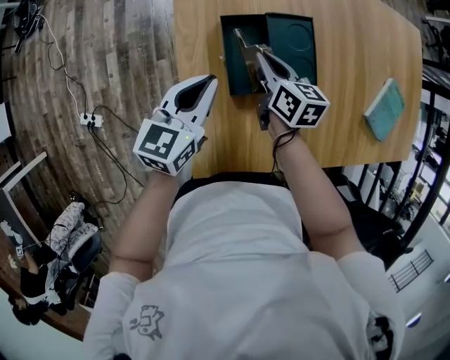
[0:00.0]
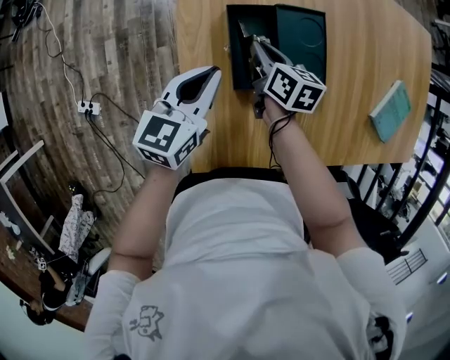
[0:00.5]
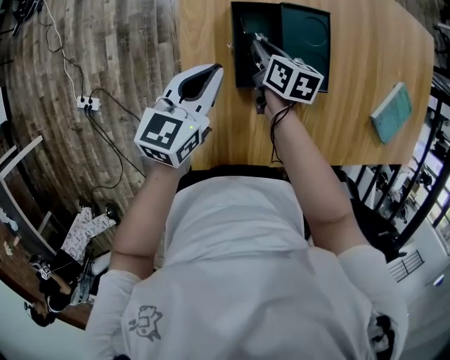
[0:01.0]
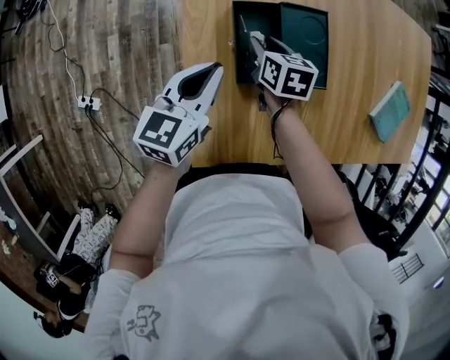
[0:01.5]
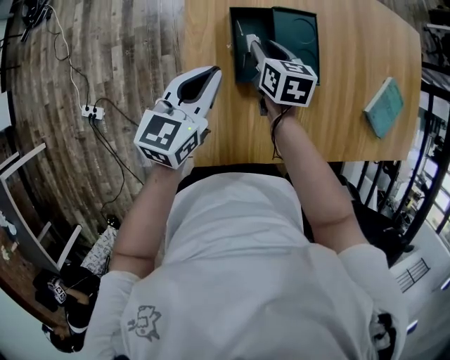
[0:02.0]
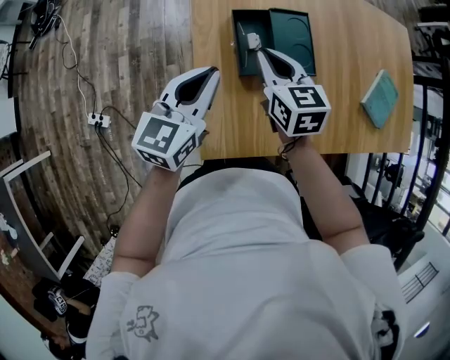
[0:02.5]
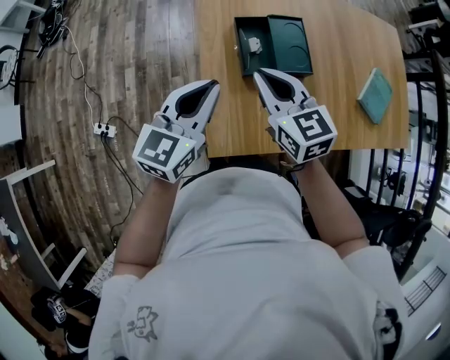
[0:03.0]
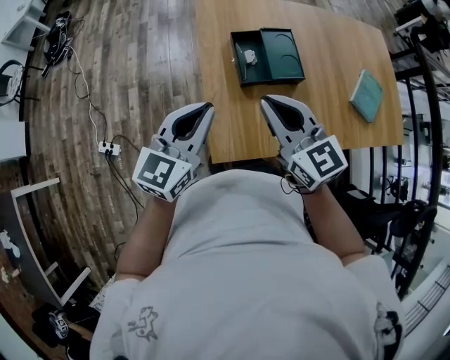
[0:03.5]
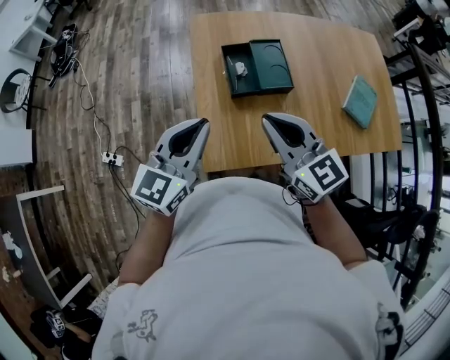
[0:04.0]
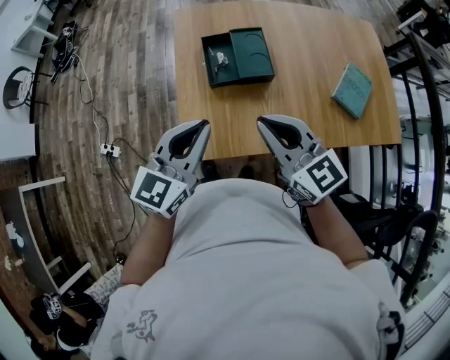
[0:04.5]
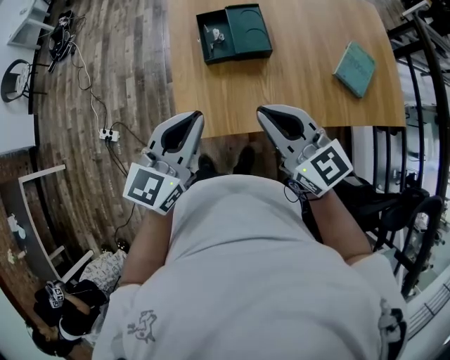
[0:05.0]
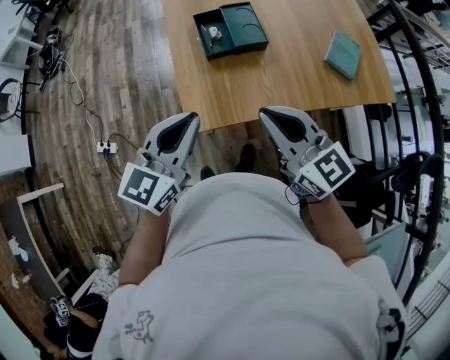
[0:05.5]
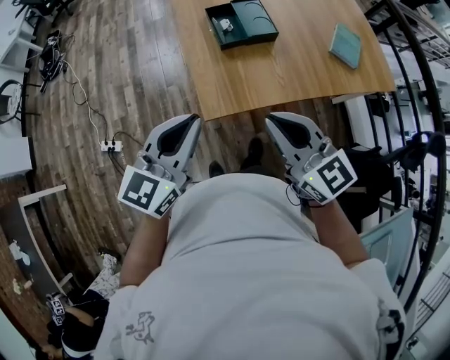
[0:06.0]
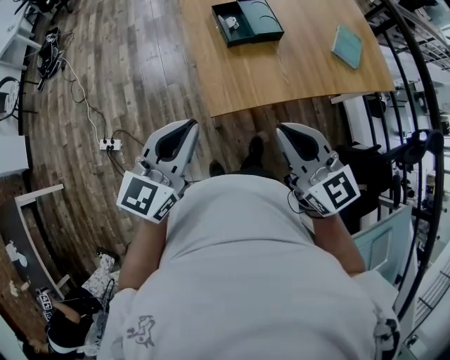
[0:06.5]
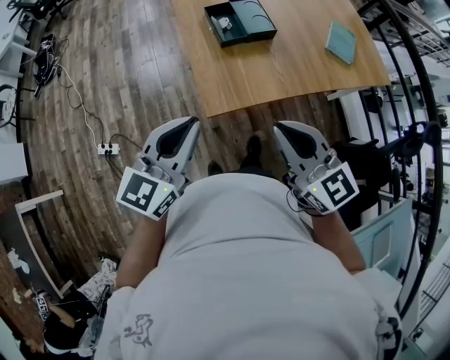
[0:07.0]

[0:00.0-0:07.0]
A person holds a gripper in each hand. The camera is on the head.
0:00.0 to 0:02.0: The right gripper goes downward and returns, approximately 10 cm each way, and opens its fingers.
0:02.0 to 0:03.5: The left gripper goes roughly 20 cm backward and upward. The right gripper heads upward and backward, covering some 35 cm, points its fingers some 30 degrees further upward, and closes up.
0:03.5 to 0:05.0: Both grippers move to the right and backward, some 15 cm.
0:05.0 to 0:07.0: The right gripper heads backward and to the left, covering approximately 20 cm, while the left gripper moves to the left and backward, some 20 cm.

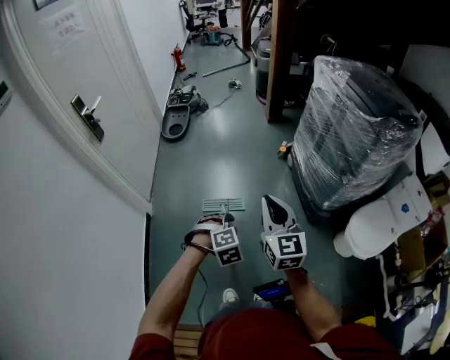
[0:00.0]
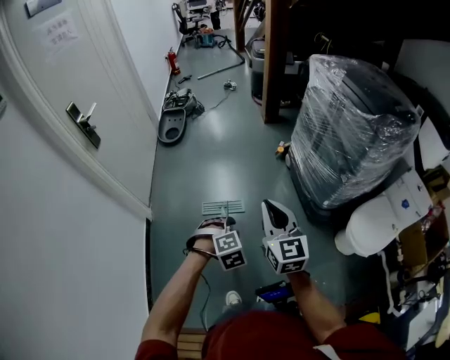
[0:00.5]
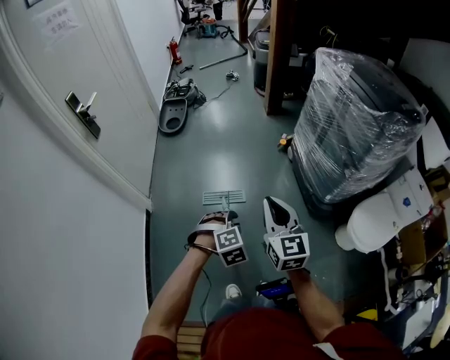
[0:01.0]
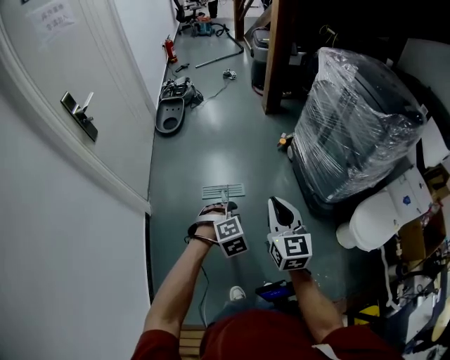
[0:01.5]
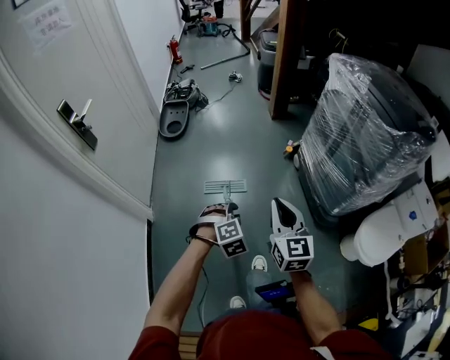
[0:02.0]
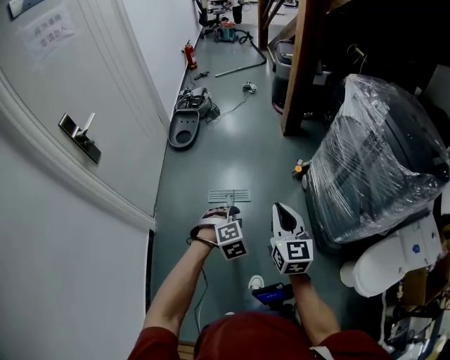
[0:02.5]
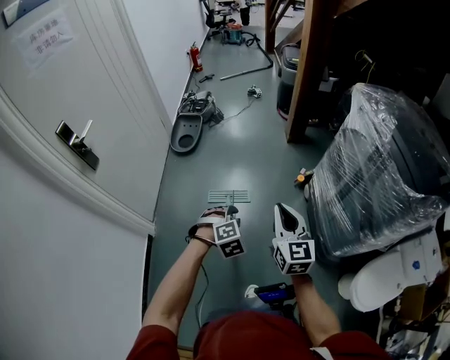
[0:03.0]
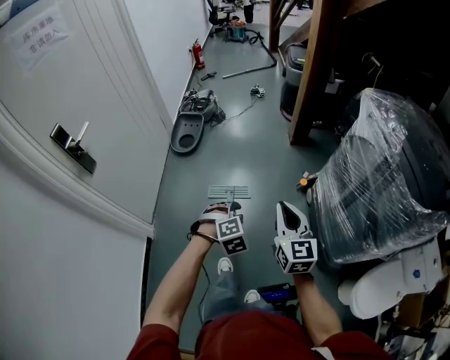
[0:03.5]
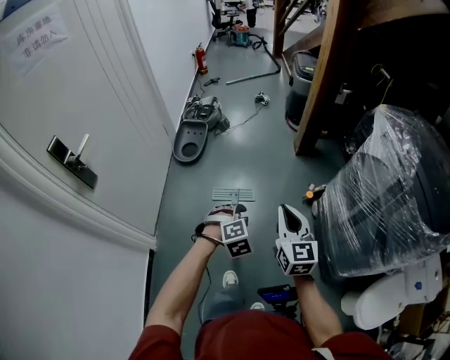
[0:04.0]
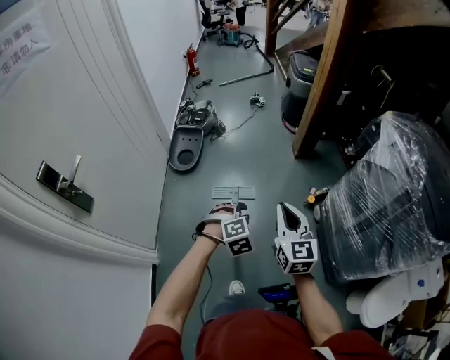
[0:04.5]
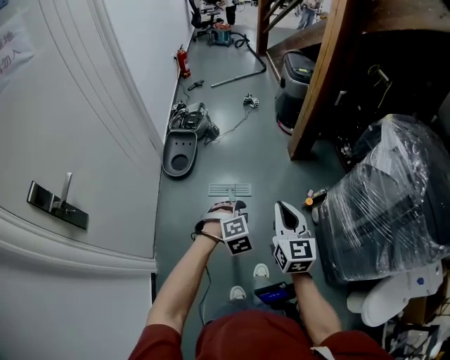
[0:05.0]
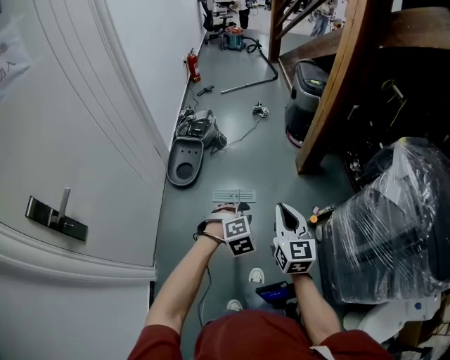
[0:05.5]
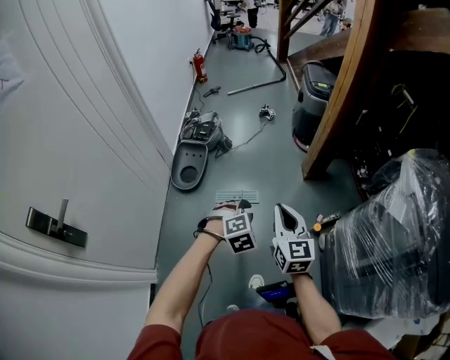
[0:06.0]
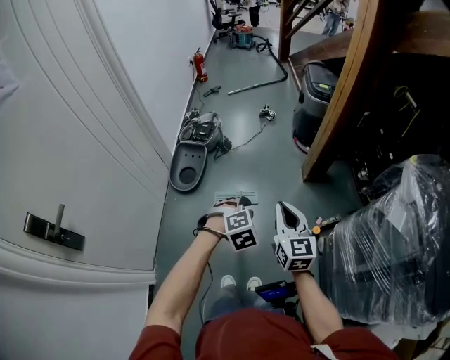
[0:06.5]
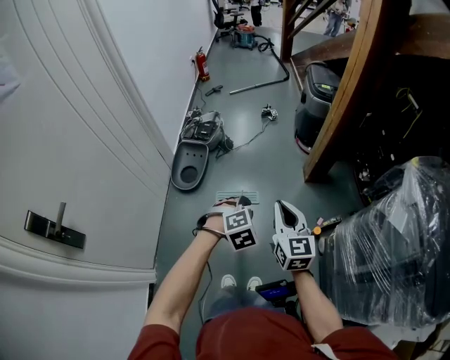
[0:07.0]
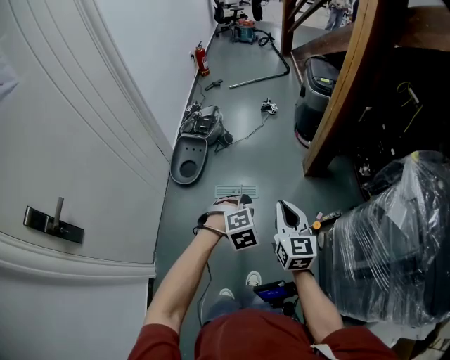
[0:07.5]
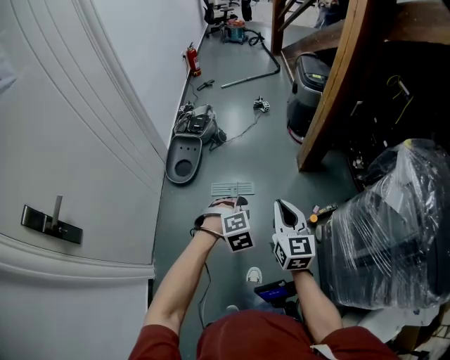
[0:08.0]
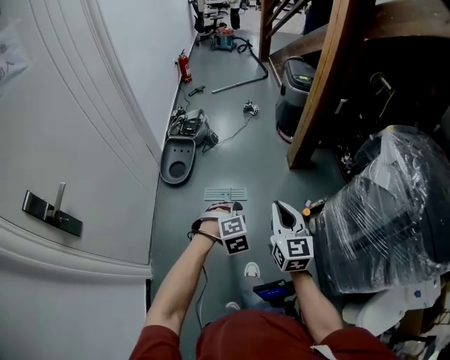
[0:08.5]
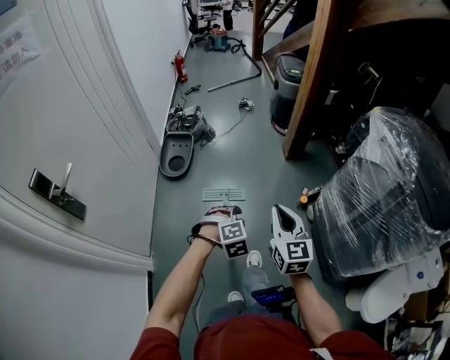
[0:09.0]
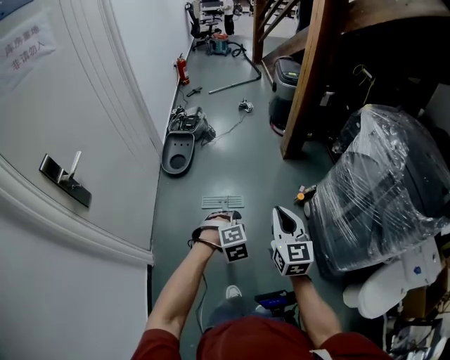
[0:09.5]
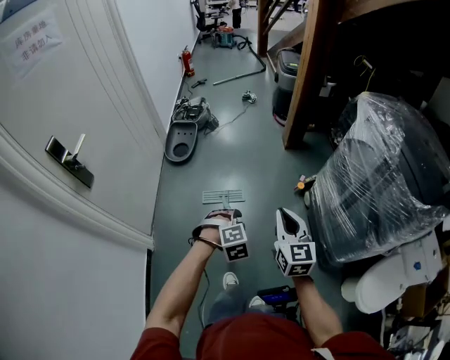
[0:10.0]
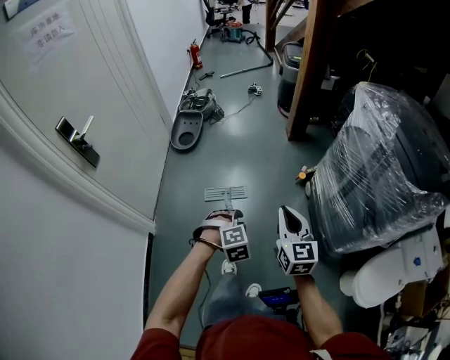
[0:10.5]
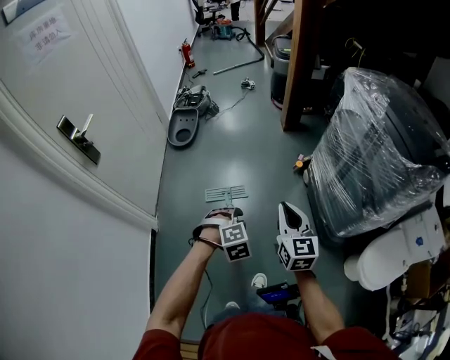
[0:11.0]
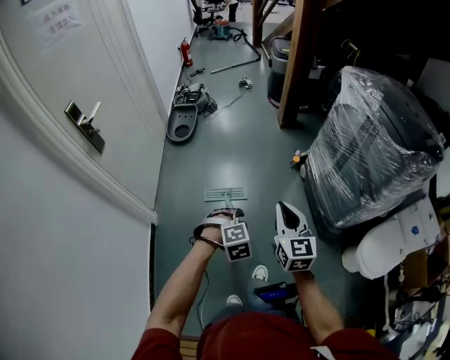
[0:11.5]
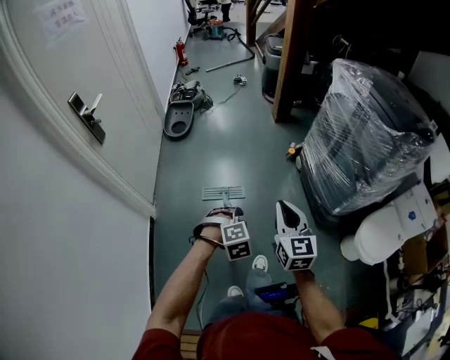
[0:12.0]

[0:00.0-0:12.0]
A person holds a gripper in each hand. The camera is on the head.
0:00.0 to 0:02.0: Both grippers move forward, roughly 15 cm.
0:02.0 to 0:04.0: The two grippers go some 35 cm forward.
0:04.0 to 0:06.0: The grippers both shift forward by roughly 35 cm.
0:06.0 to 0:08.0: The grippers move only a little.
0:08.0 to 0:10.0: Both grippers are carried backward, approximately 40 cm.
0:10.0 to 0:12.0: Both grippers move backward, roughly 35 cm.

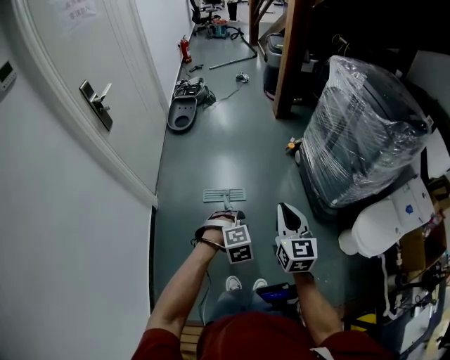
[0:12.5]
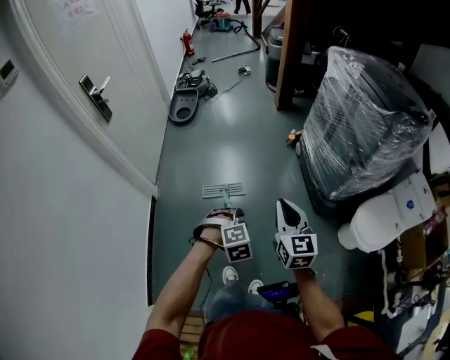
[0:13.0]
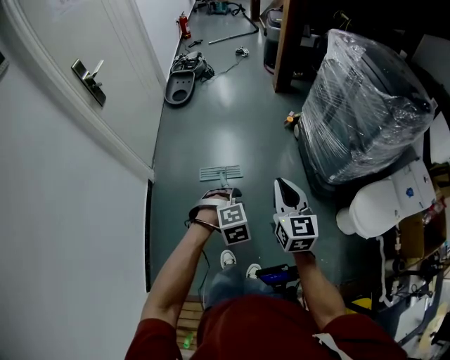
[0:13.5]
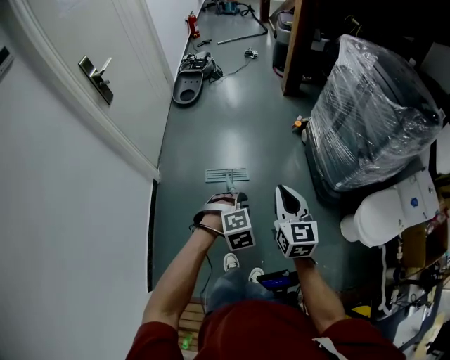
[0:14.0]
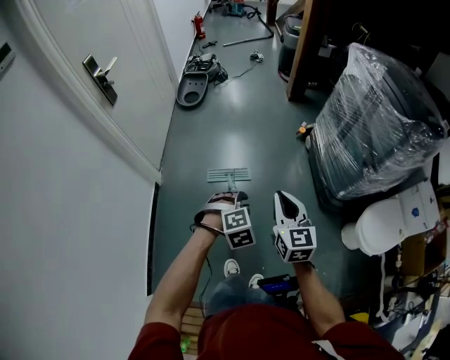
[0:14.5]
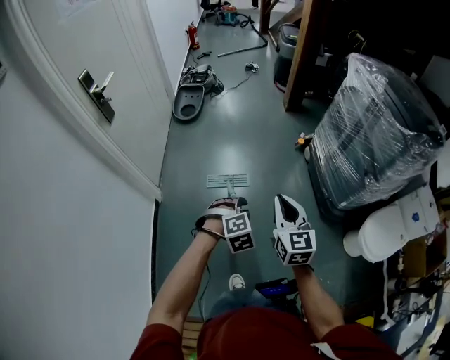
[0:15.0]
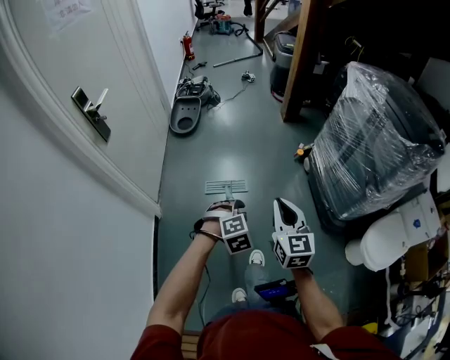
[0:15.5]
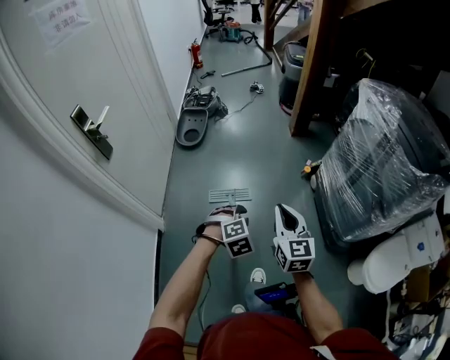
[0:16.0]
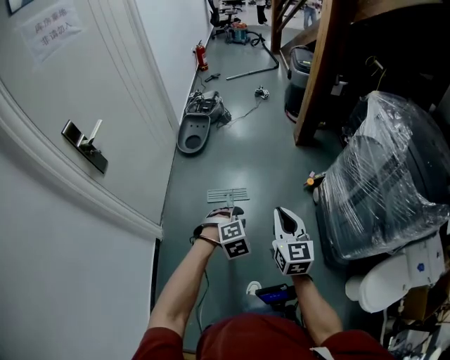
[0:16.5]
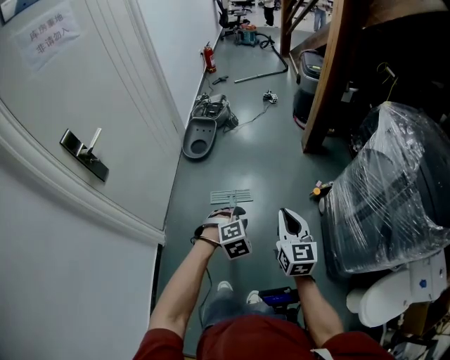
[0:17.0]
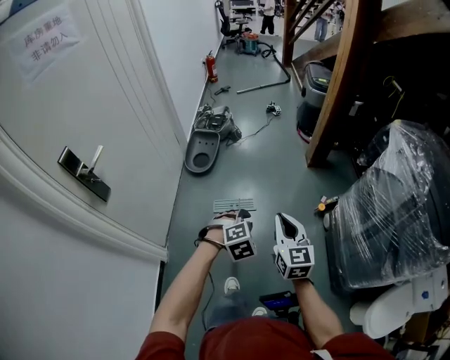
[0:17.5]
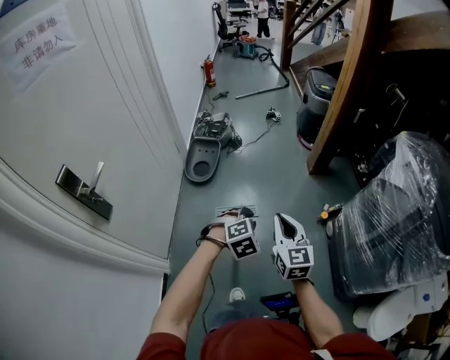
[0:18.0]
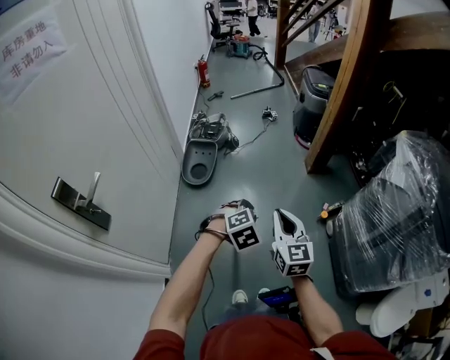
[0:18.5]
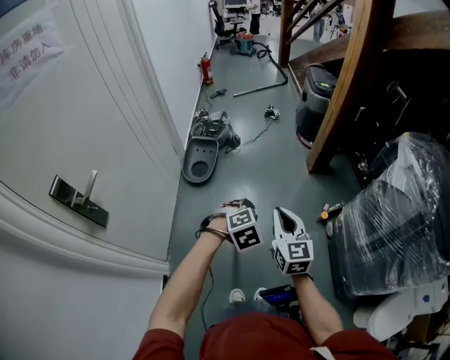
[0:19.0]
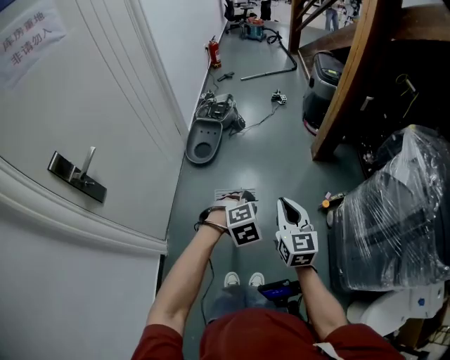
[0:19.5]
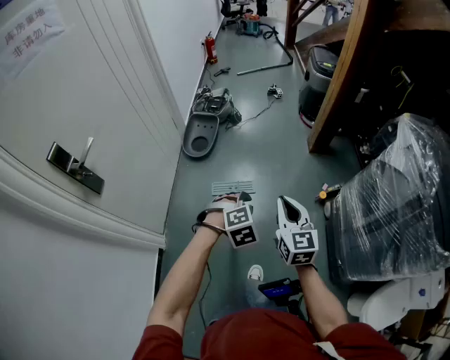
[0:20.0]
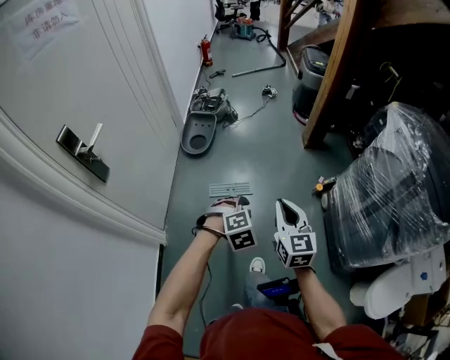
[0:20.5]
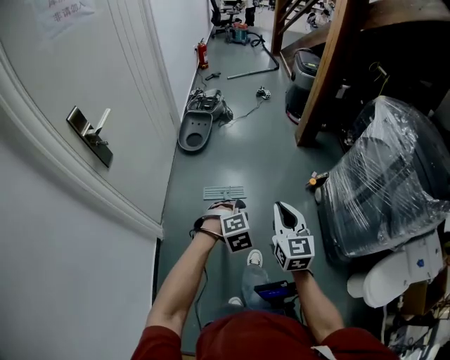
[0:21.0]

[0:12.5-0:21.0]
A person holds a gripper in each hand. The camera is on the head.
0:12.5 to 0:14.5: The grippers make only small movements.
0:14.5 to 0:16.5: Both grippers move forward, about 35 cm.
0:16.5 to 0:19.0: The left gripper is displaced forward by some 30 cm, while the right gripper heads forward and to the left, covering about 30 cm.
0:19.0 to 0:21.0: The two grippers go approximately 30 cm backward.
